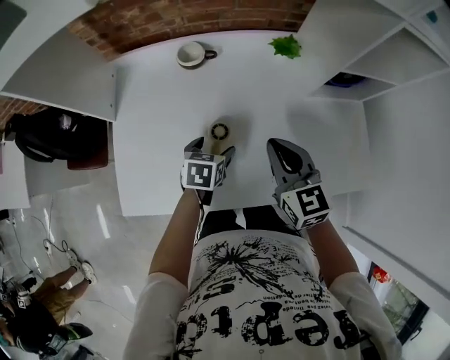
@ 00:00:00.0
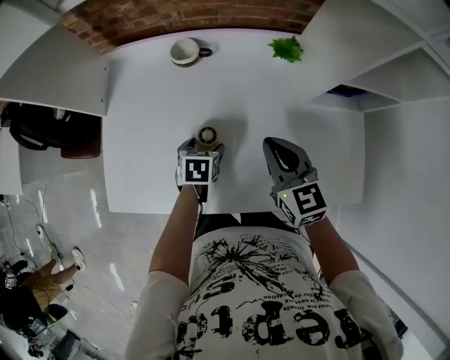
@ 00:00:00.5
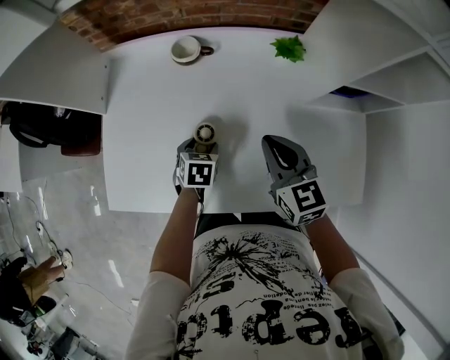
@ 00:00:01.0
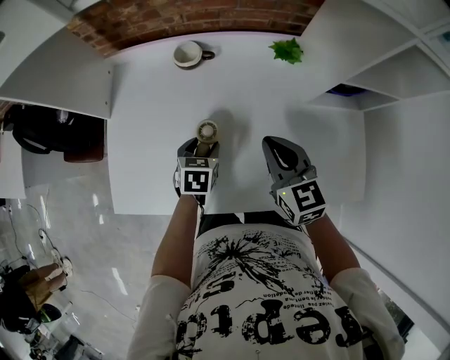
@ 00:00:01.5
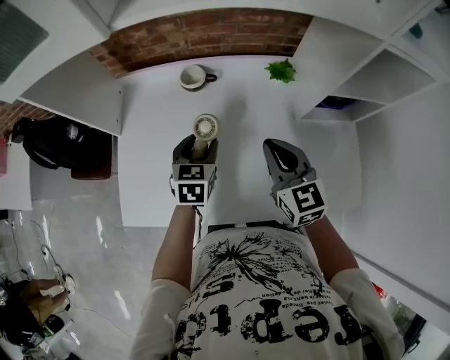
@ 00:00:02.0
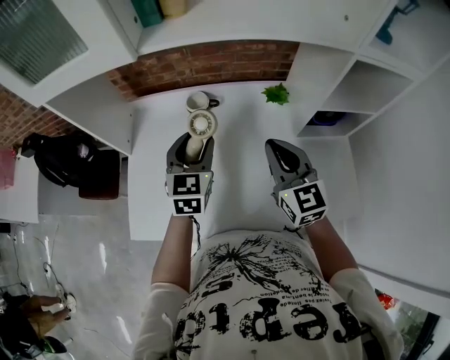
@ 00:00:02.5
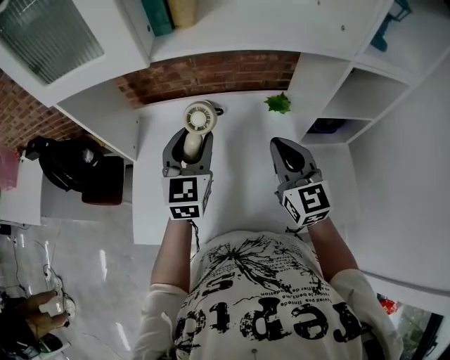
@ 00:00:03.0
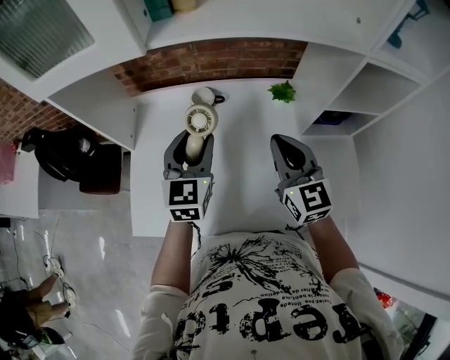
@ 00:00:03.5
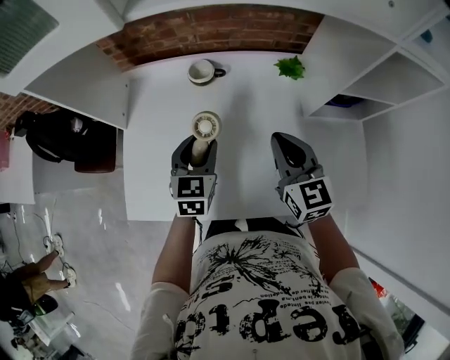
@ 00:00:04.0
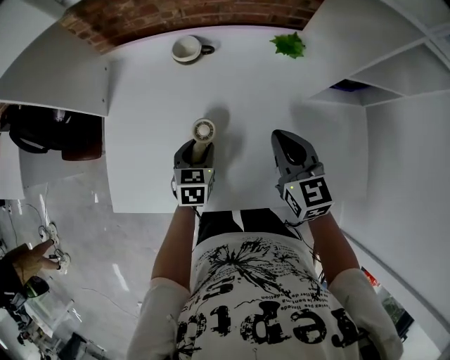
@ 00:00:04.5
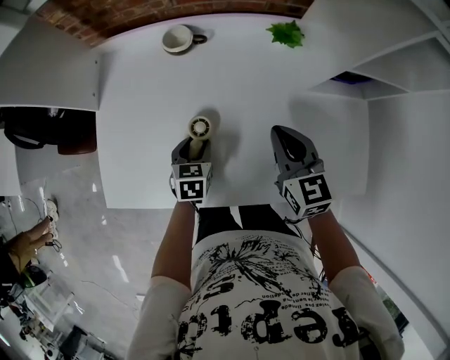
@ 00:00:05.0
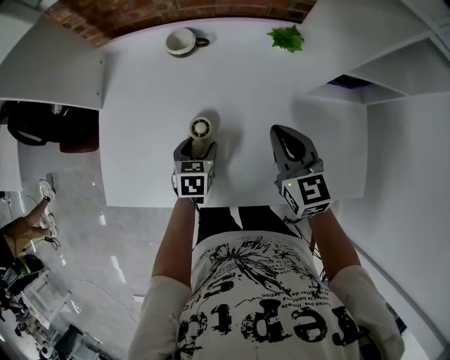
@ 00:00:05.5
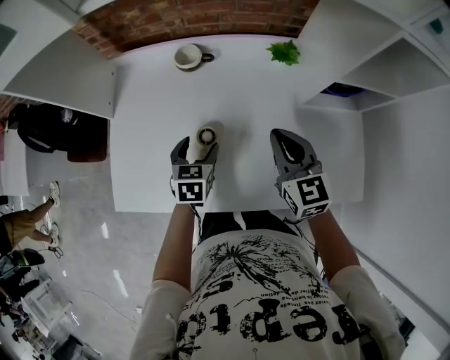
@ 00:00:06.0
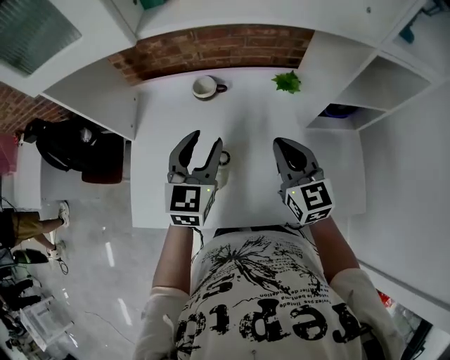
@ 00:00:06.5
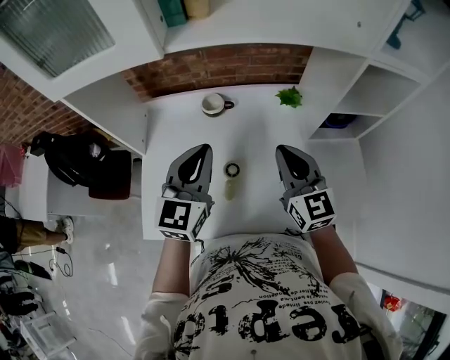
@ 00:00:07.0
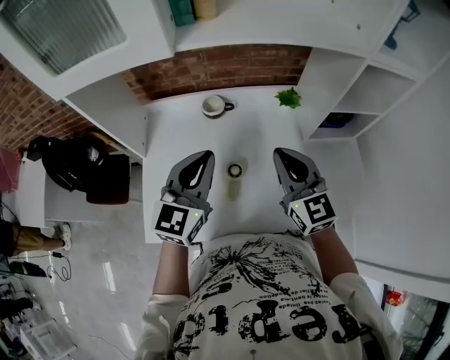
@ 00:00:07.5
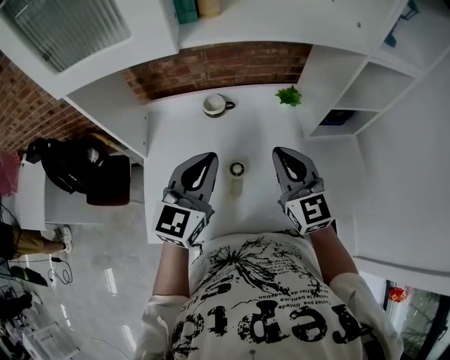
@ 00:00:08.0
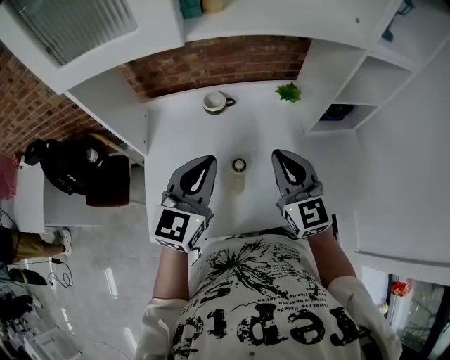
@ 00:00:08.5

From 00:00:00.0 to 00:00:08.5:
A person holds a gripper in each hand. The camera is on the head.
From 00:00:00.0 to 00:00:02.0: The left gripper shifts some 10 cm upward and forward, swivels some 20 degrees, and closes up, while the right gripper moves some 5 cm.
From 00:00:02.0 to 00:00:04.0: The right gripper moves some 10 cm upward and comes back. Meanwhile the left gripper travels upward and back again, roughly 20 cm each way.
From 00:00:04.0 to 00:00:06.5: The left gripper heads upward, covering roughly 10 cm. The right gripper reaches approximately 10 cm downward, then returns.
From 00:00:06.5 to 00:00:08.5: The left gripper is displaced backward, to the left and upward by some 10 cm, and closes. Meanwhile the right gripper is displaced to the left and backward by some 10 cm.

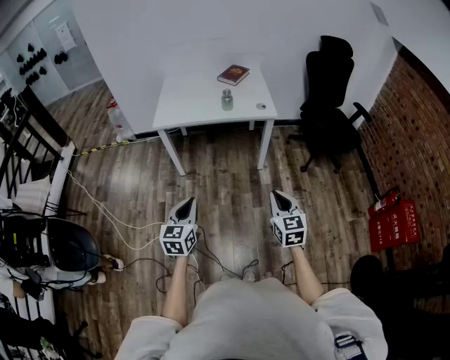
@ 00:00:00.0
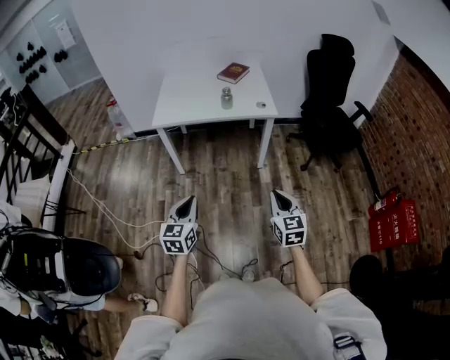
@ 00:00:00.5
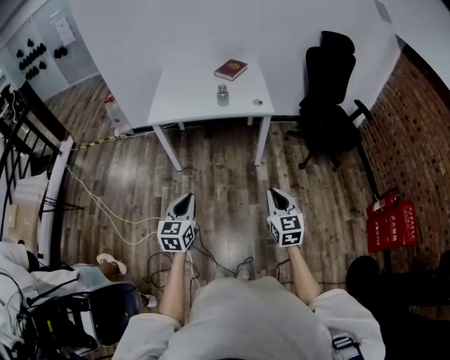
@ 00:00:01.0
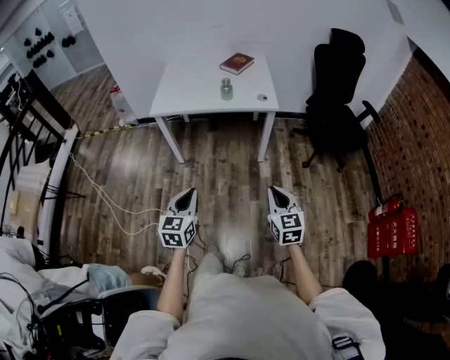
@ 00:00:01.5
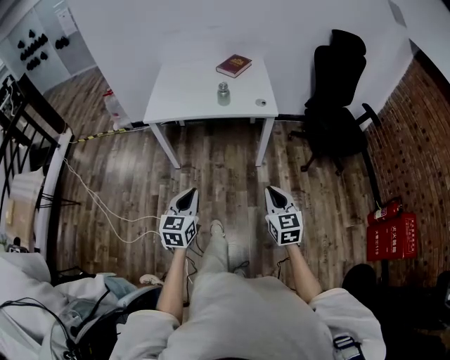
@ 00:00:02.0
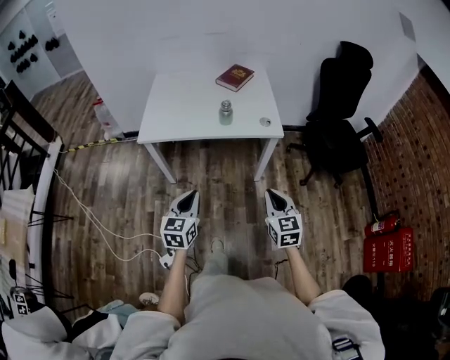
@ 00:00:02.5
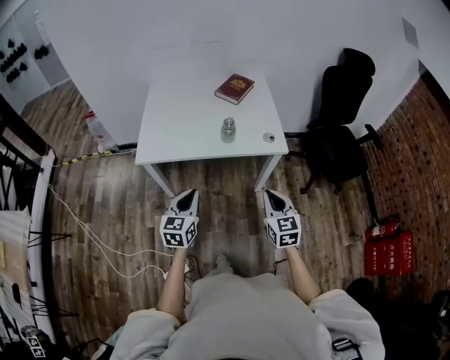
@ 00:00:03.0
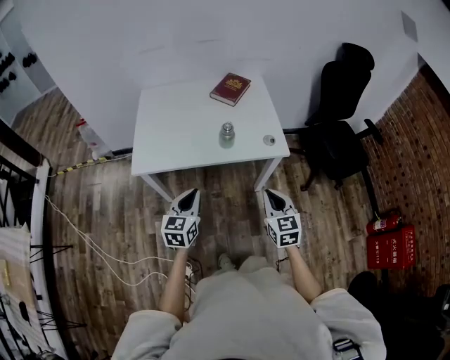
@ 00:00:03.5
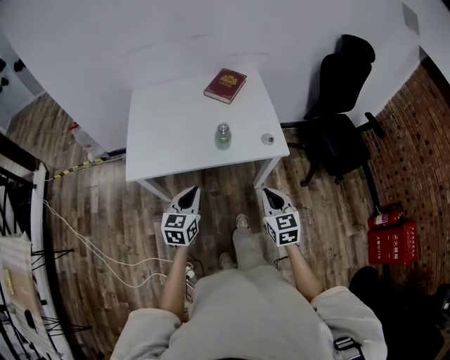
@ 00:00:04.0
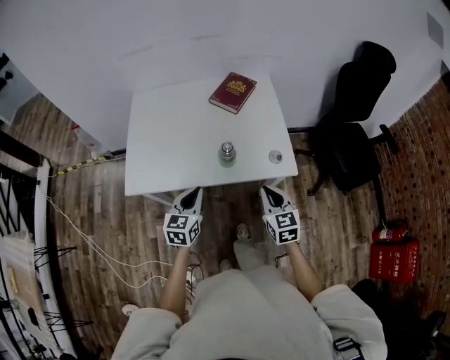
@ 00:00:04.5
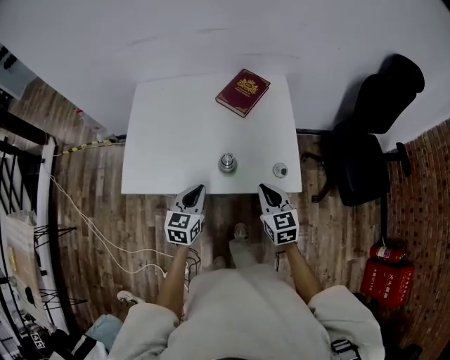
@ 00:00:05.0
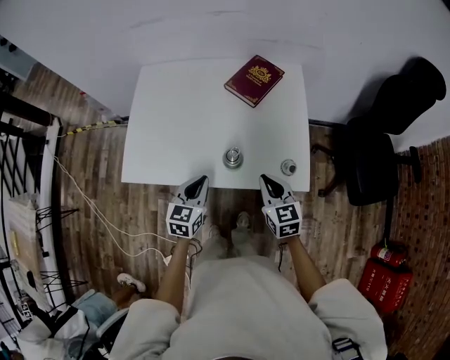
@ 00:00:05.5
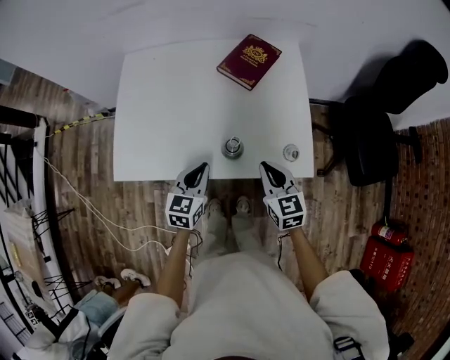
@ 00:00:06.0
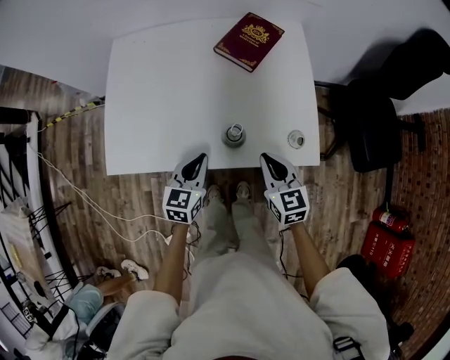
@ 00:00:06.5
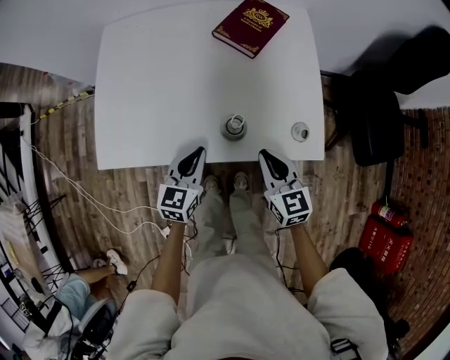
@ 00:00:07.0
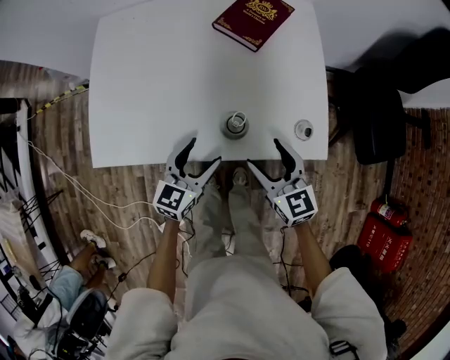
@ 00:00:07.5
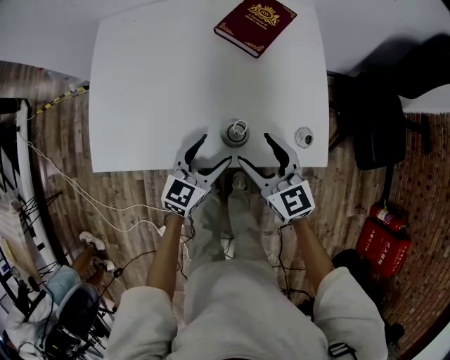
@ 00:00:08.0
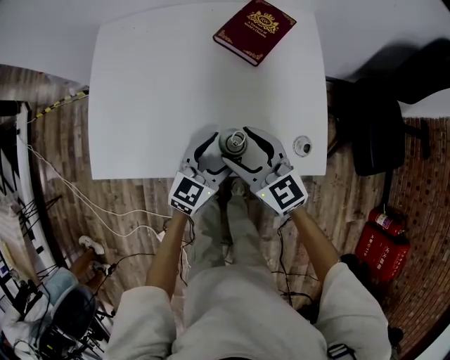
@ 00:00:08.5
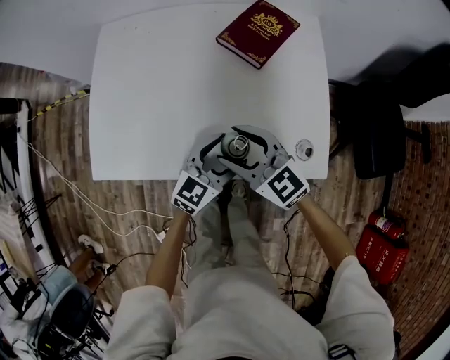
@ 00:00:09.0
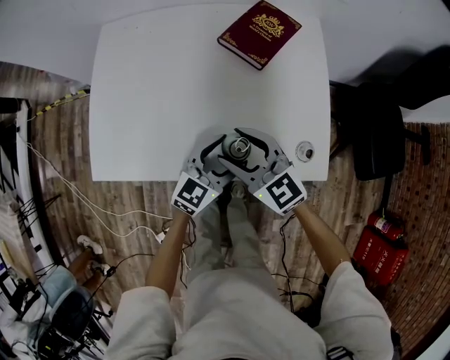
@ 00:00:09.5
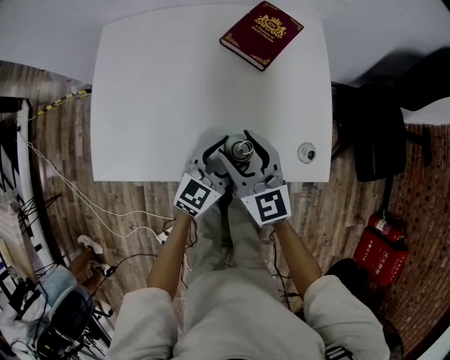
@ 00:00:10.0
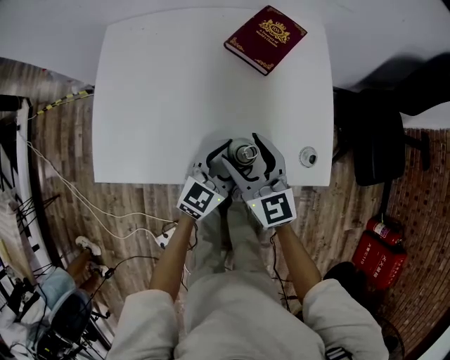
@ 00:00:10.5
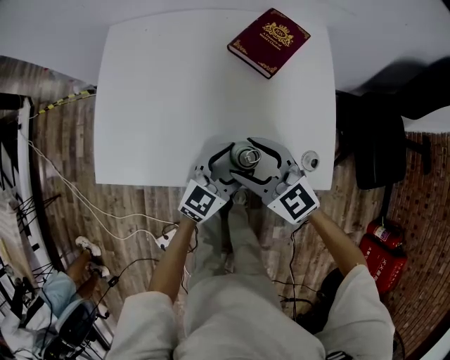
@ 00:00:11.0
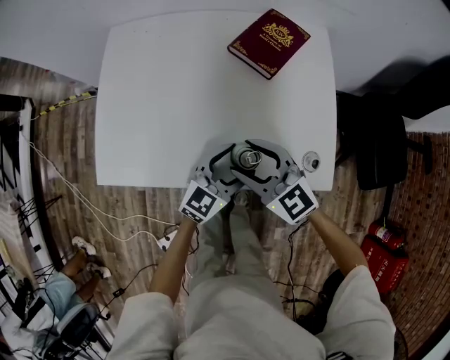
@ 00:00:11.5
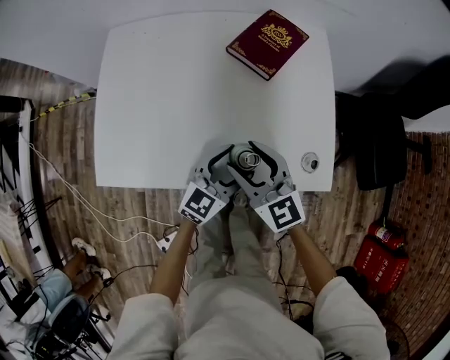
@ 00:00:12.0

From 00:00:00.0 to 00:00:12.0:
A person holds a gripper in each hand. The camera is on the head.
From 00:00:00.0 to 00:00:02.0: The left gripper is displaced forward and to the right by some 10 cm. Meanwhile the right gripper shifts some 10 cm forward.
From 00:00:02.0 to 00:00:04.0: Both grippers travel together forward, approximately 35 cm.
From 00:00:04.0 to 00:00:06.0: The two grippers go roughly 25 cm forward.
From 00:00:06.0 to 00:00:08.0: The right gripper goes approximately 5 cm to the left, and opens up. Meanwhile the left gripper moves downward, roughly 5 cm, and opens its fingers.
From 00:00:08.0 to 00:00:10.0: The left gripper moves about 5 cm, while the right gripper shifts roughly 10 cm to the left and forward.

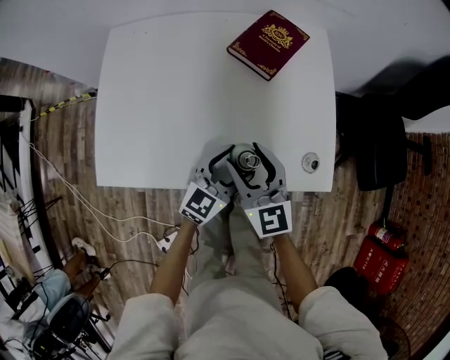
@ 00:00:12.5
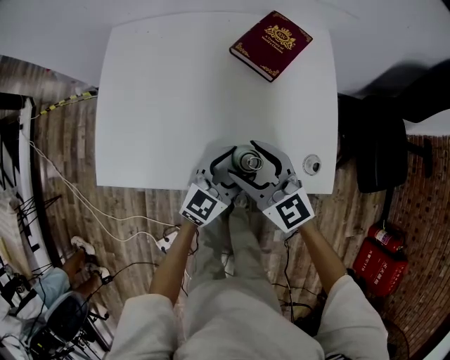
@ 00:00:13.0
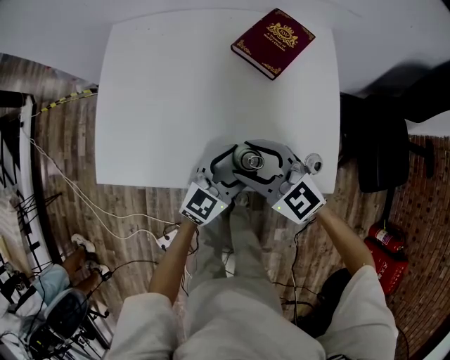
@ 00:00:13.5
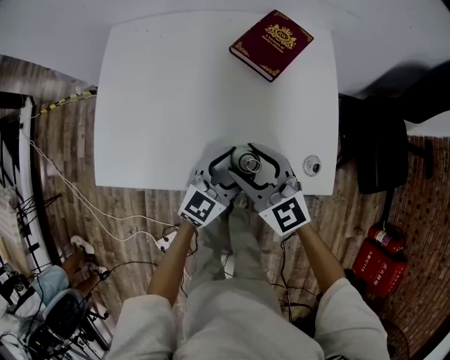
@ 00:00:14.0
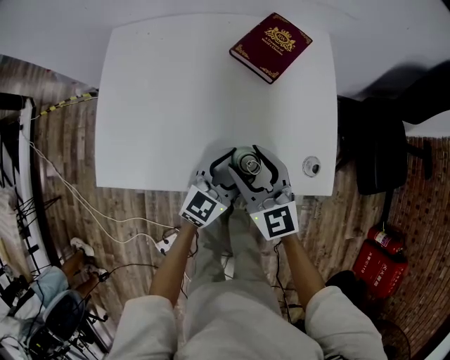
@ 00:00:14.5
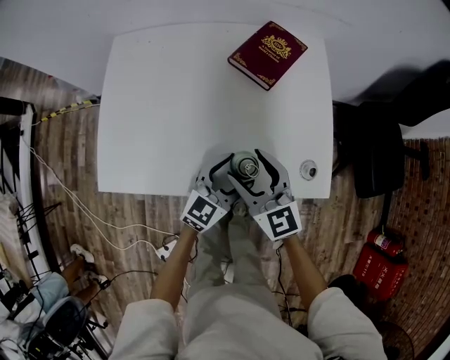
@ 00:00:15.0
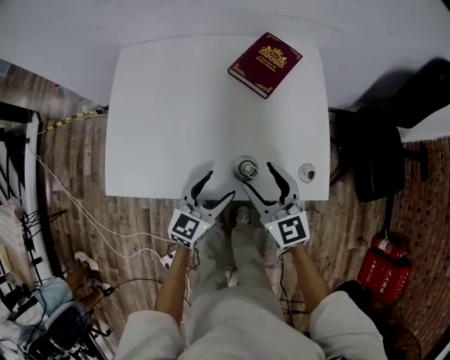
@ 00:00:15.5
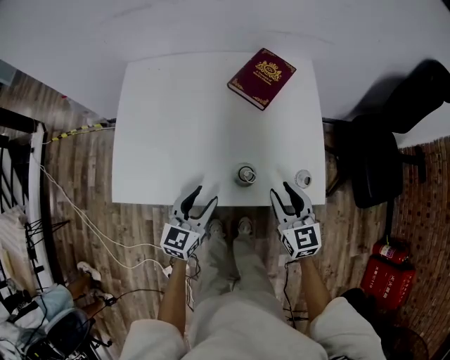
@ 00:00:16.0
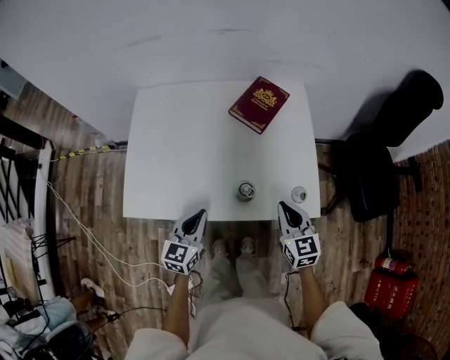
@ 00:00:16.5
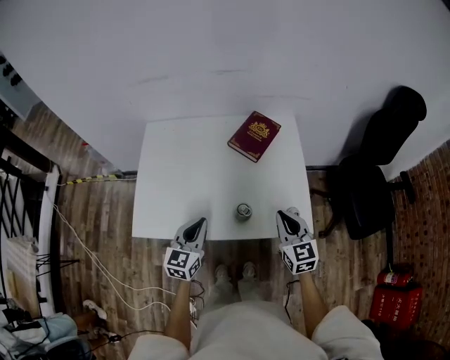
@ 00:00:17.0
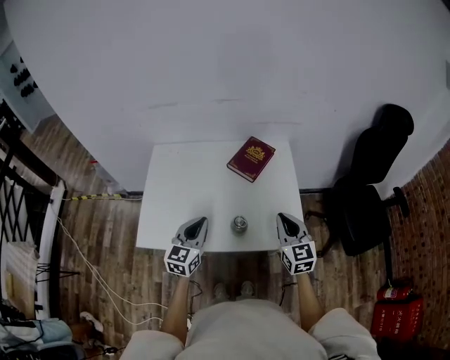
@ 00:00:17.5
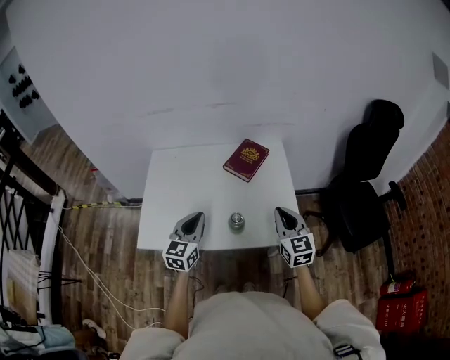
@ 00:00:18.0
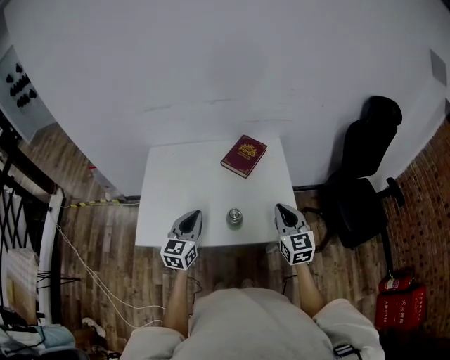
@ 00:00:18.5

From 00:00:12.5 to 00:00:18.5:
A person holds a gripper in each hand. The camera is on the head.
From 00:00:14.5 to 00:00:16.5: The right gripper is displaced to the right and backward by some 15 cm, and closes; the left gripper goes approximately 15 cm to the left, backward and upward, rotates about 20 degrees, and closes.
From 00:00:16.5 to 00:00:18.5: The grippers both shift upward by roughly 15 cm.
